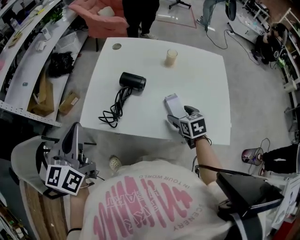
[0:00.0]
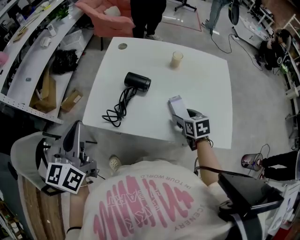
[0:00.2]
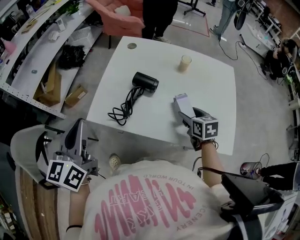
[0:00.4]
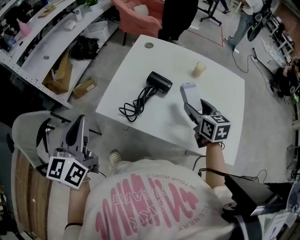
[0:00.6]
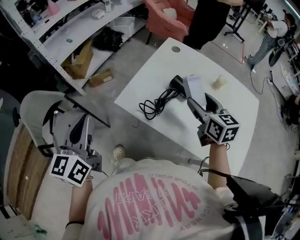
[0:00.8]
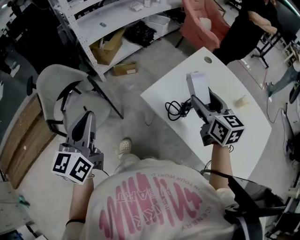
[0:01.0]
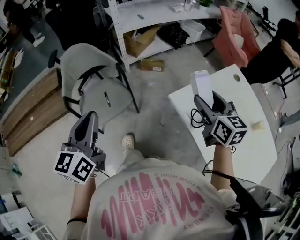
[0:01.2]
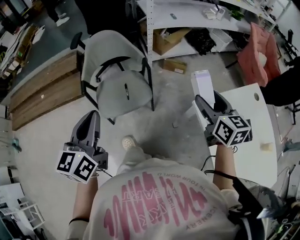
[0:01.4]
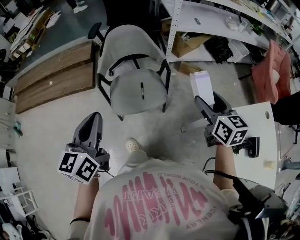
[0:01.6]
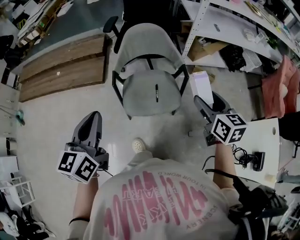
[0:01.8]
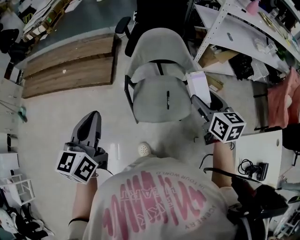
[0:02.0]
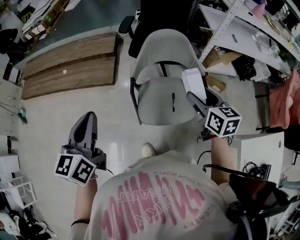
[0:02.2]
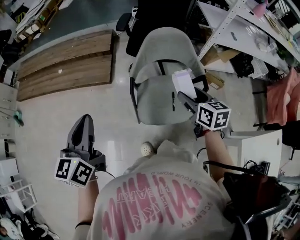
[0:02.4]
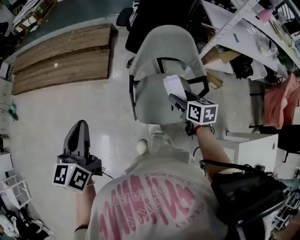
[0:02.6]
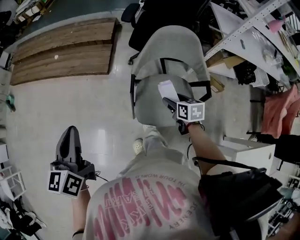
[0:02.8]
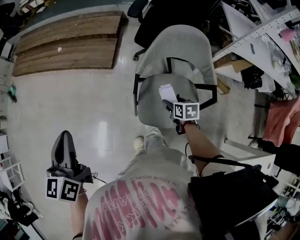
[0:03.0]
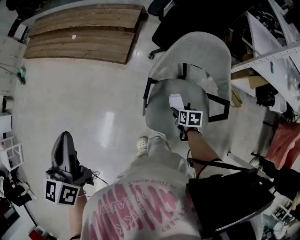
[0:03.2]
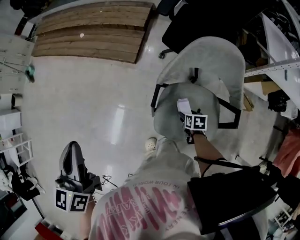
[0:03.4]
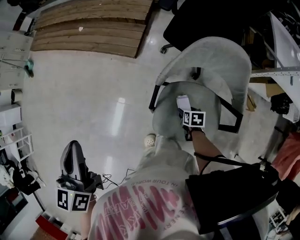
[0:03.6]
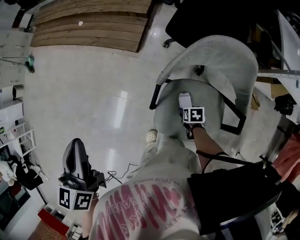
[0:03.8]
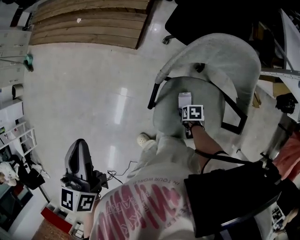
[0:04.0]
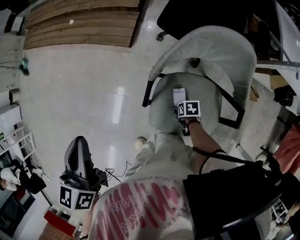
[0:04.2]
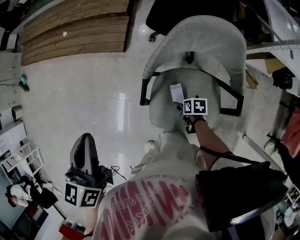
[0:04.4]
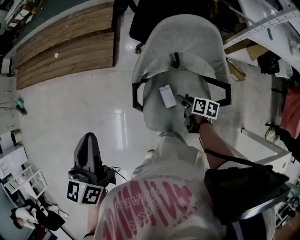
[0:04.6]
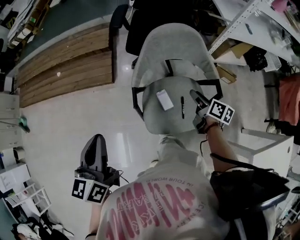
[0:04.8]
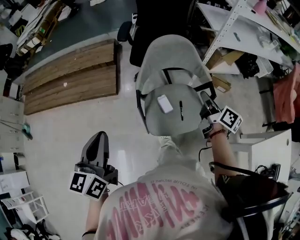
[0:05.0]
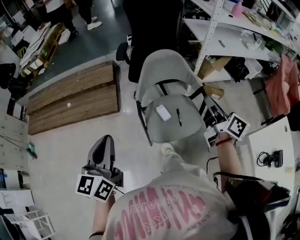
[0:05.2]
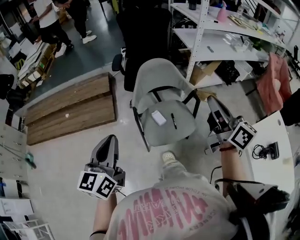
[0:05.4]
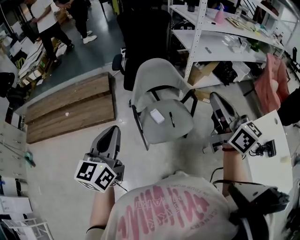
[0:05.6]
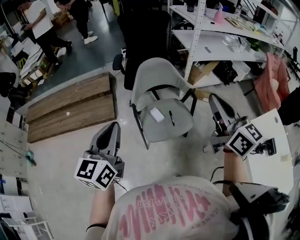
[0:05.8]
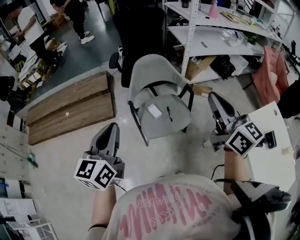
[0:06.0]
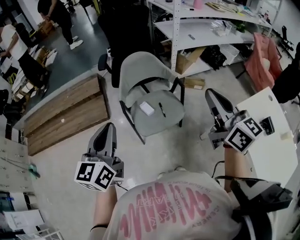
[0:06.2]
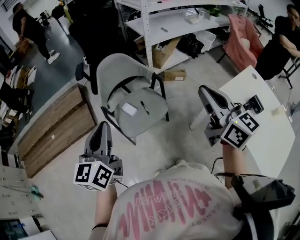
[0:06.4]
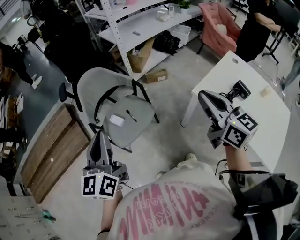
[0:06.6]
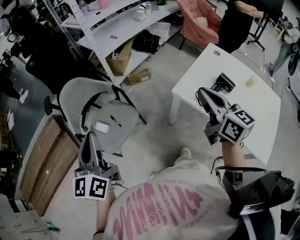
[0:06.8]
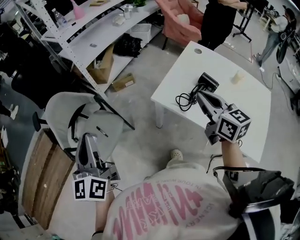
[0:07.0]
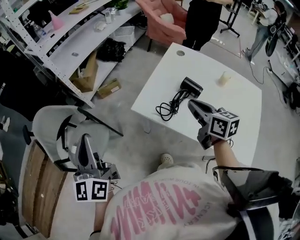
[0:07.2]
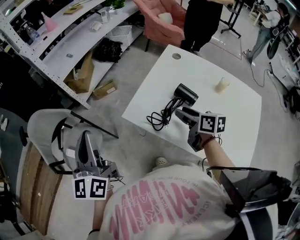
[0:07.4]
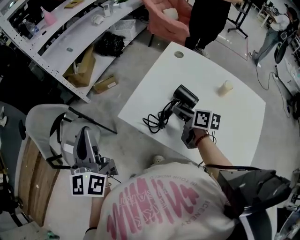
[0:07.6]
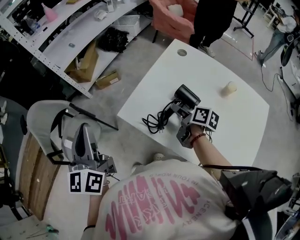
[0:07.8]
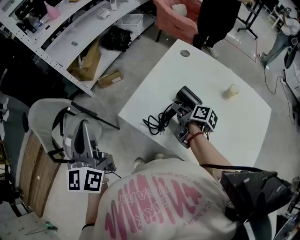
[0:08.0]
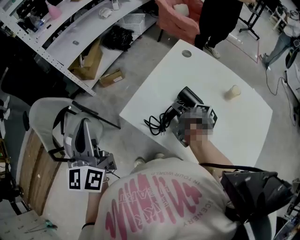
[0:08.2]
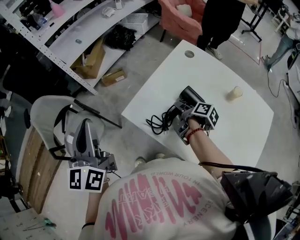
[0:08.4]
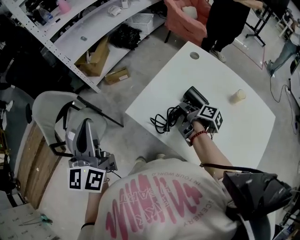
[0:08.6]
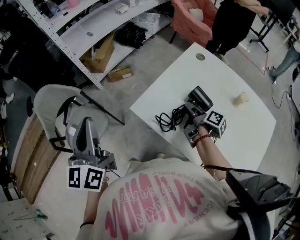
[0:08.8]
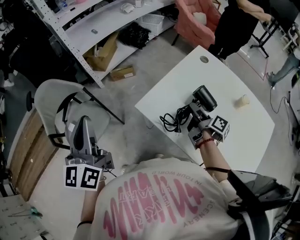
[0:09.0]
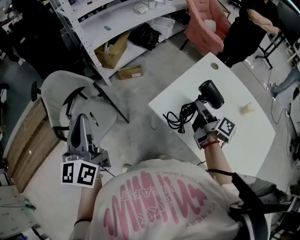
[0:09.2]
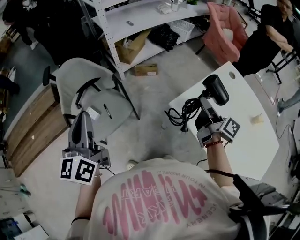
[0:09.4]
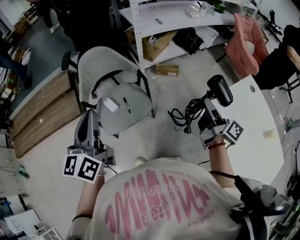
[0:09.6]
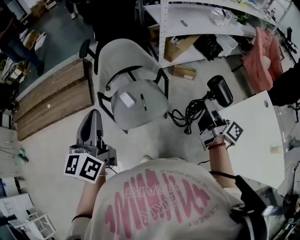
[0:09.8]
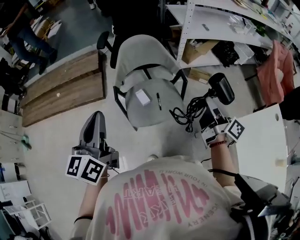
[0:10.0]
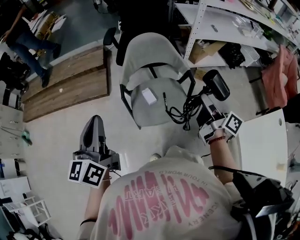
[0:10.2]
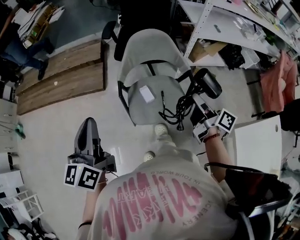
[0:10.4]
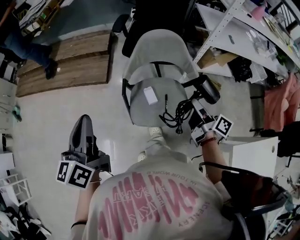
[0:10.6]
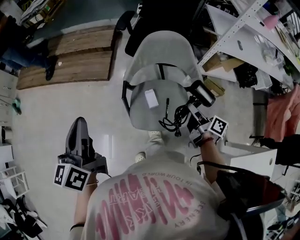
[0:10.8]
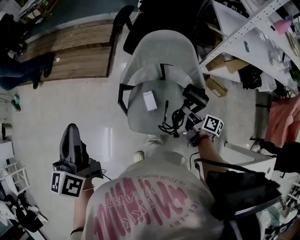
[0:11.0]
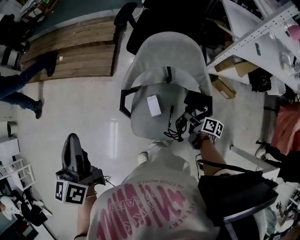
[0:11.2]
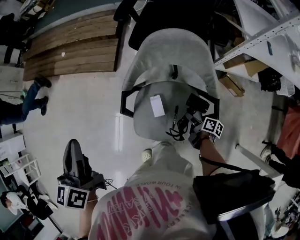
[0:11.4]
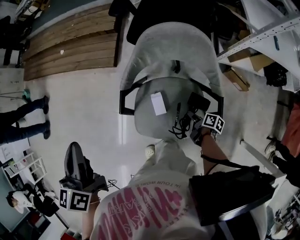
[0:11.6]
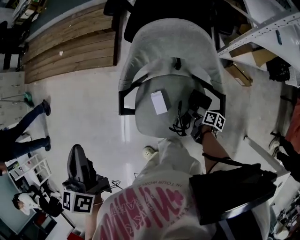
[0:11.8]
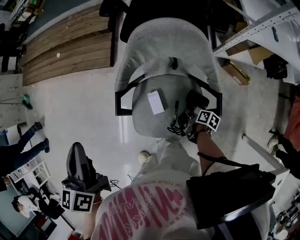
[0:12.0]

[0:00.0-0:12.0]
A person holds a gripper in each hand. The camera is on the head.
0.0 to 1.6 s: The right gripper ends up approximately 60 cm from where it was, and swivels about 70 degrees; the left gripper moves roughly 50 cm, and changes its angle by approximately 70 degrees.
1.6 to 3.0 s: The left gripper moves some 30 cm, and swivels roughly 30 degrees; the right gripper moves approximately 50 cm, and angles its fingers downward, by some 30 degrees.
3.0 to 4.4 s: The left gripper moves some 15 cm. Meanwhile the right gripper moves downward, some 15 cm, and swivels roughly 30 degrees.
4.4 to 6.0 s: The right gripper is displaced upward by some 60 cm, tips its fingers upward by about 70 degrees, and closes up; the left gripper moves some 20 cm, and rotates some 40 degrees.
6.0 to 7.6 s: The two grippers travel together, about 50 cm. The right gripper tips its fingers downward by about 30 degrees, and opens its fingers, while the left gripper swivels roughly 20 degrees.
7.6 to 9.0 s: The left gripper travels to the left by roughly 5 cm; the right gripper swivels about 30 degrees.
9.0 to 10.4 s: The two grippers travel together, approximately 50 cm. The right gripper swivels some 50 degrees. The left gripper changes its angle by approximately 40 degrees.
10.4 to 12.0 s: The right gripper travels downward by approximately 40 cm, and angles its fingers downward, by some 50 degrees. Meanwhile the left gripper moves some 15 cm, and changes its angle by about 30 degrees.

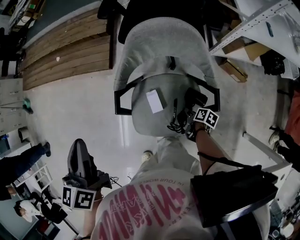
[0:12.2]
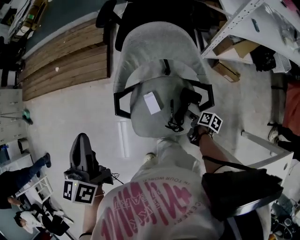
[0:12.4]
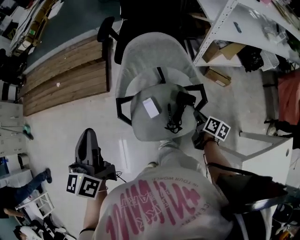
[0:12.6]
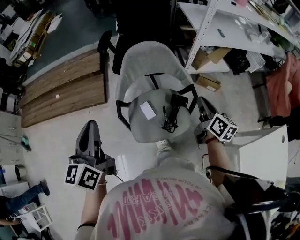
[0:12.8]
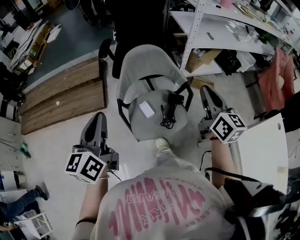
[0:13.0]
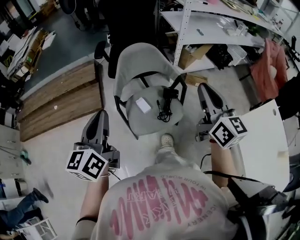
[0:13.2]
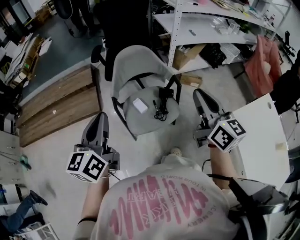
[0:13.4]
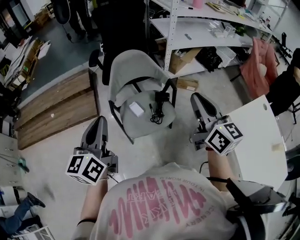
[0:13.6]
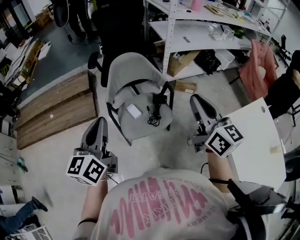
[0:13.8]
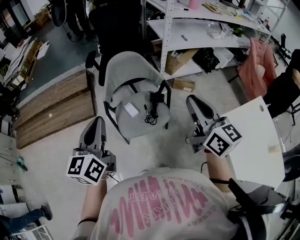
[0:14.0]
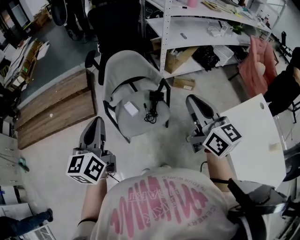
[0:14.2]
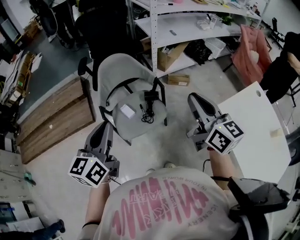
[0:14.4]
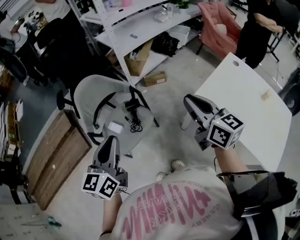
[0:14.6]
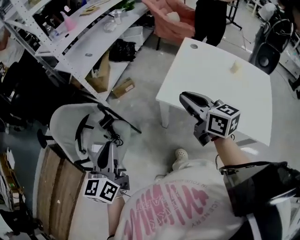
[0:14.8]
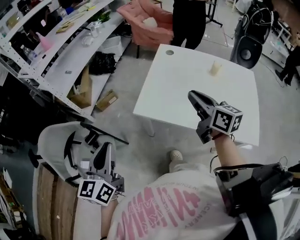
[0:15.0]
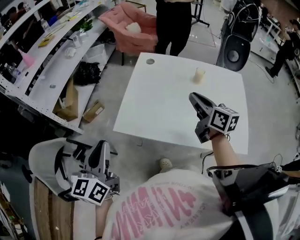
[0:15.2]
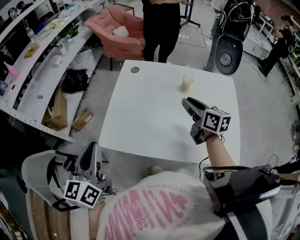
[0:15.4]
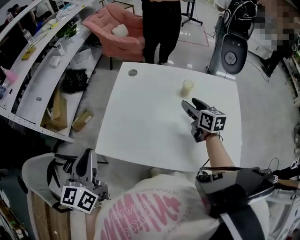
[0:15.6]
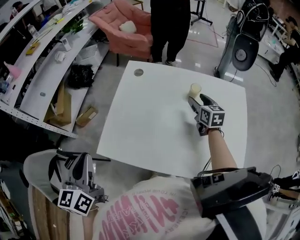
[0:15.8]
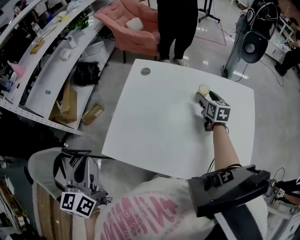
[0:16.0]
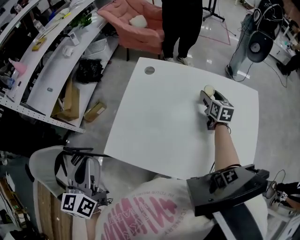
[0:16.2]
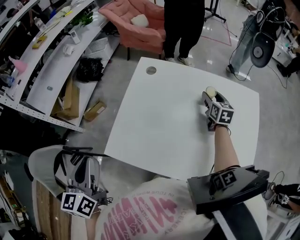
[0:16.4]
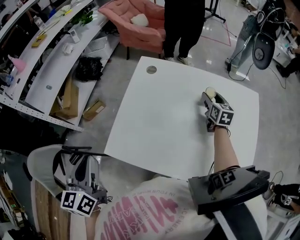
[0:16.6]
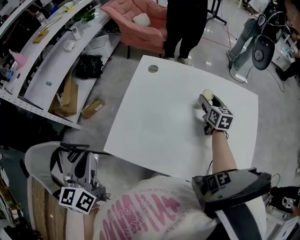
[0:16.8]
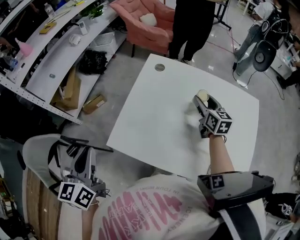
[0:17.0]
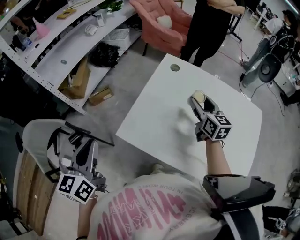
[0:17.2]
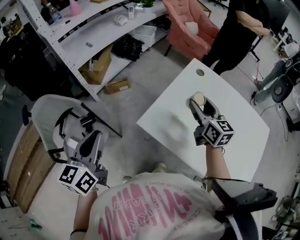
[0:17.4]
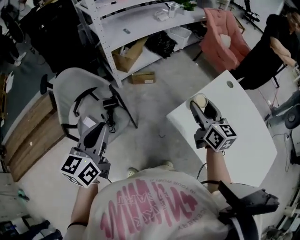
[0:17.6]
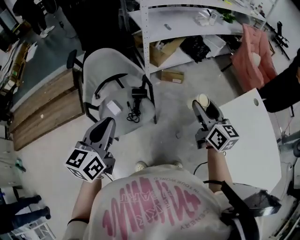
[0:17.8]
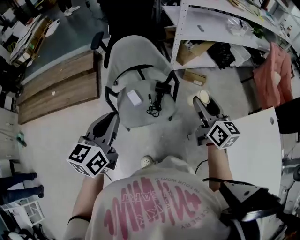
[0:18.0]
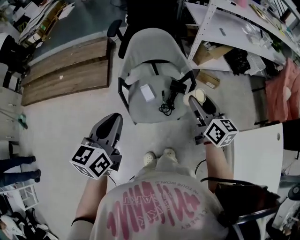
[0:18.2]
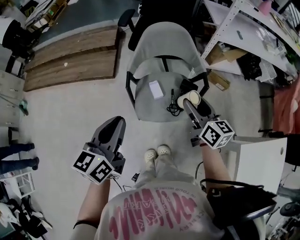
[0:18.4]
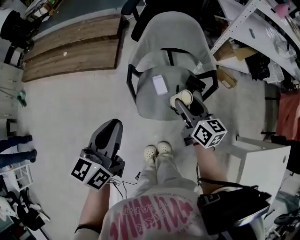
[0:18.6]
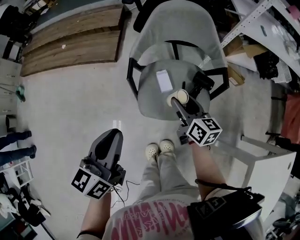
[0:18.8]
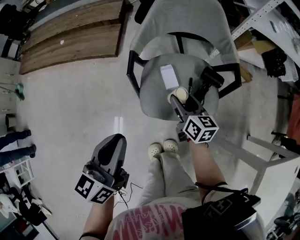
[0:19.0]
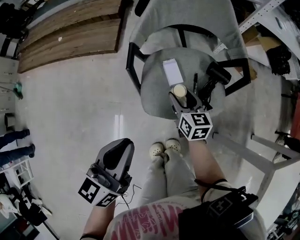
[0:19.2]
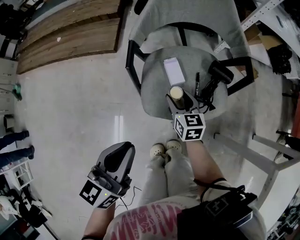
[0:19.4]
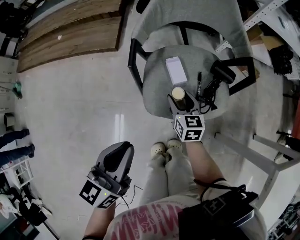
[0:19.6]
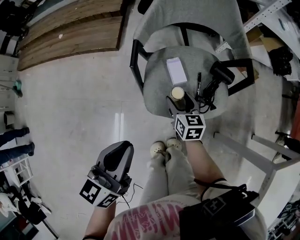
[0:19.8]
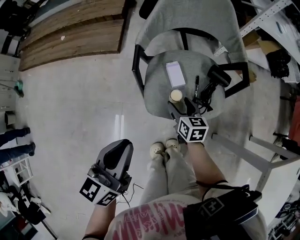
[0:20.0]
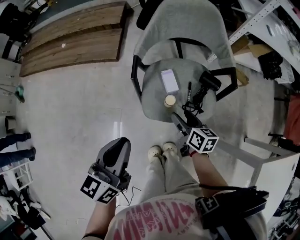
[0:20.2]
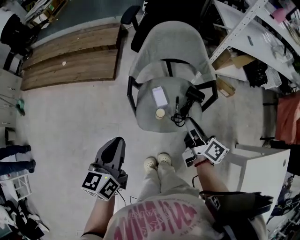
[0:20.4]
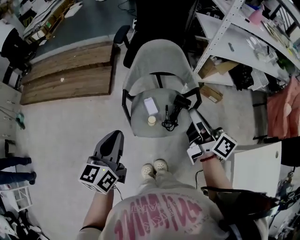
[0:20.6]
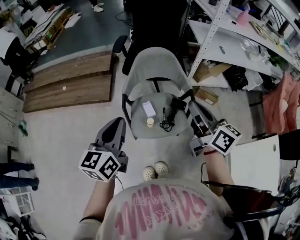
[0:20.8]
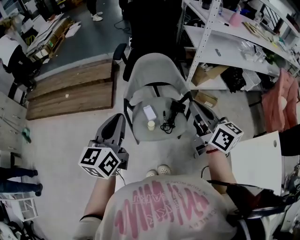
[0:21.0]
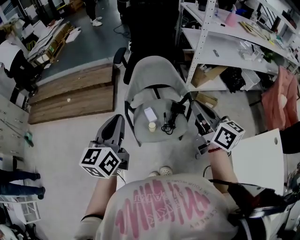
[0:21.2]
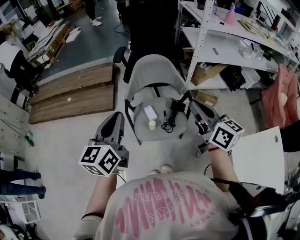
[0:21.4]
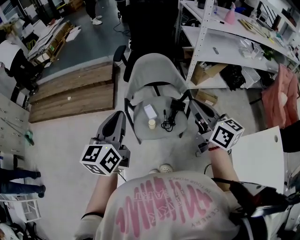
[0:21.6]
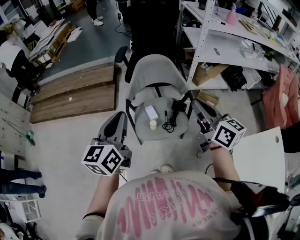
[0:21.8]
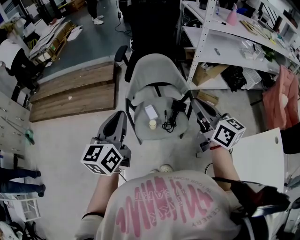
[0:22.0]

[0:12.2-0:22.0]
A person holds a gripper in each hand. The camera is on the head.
12.2 to 13.6 s: The left gripper changes place by approximately 20 cm, and rotates roughly 40 degrees, while the right gripper is displaced upward by roughly 50 cm, tilts its fingers approximately 60 degrees upward, and closes its fingers.
13.6 to 15.0 s: The left gripper ends up approximately 35 cm from where it was, and swivels about 50 degrees; the right gripper changes place by about 40 cm, and changes its angle by about 50 degrees.
15.0 to 16.4 s: The left gripper goes about 20 cm forward and to the right, while the right gripper is displaced to the right, forward and downward by some 40 cm, changes its angle by roughly 30 degrees, and opens up.
16.4 to 17.8 s: The left gripper changes place by approximately 35 cm, and swivels about 30 degrees. The right gripper ends up some 60 cm from where it was, and rotates roughly 60 degrees.
17.8 to 19.2 s: The right gripper moves about 50 cm, and changes its angle by roughly 40 degrees. Meanwhile the left gripper shifts approximately 20 cm downward, and swivels approximately 20 degrees.
19.2 to 20.6 s: The right gripper is displaced upward by about 35 cm, changes its angle by about 50 degrees, and closes its fingers, while the left gripper travels upward by roughly 15 cm.
20.6 to 22.0 s: The two grippers go about 10 cm upward. The right gripper turns by roughly 30 degrees.

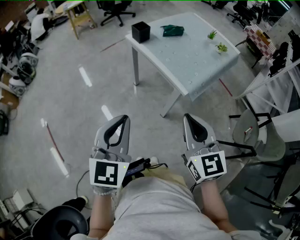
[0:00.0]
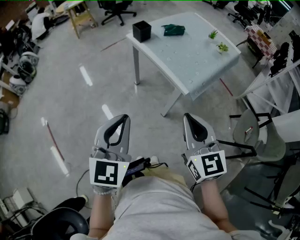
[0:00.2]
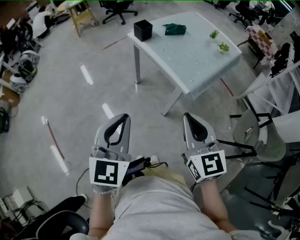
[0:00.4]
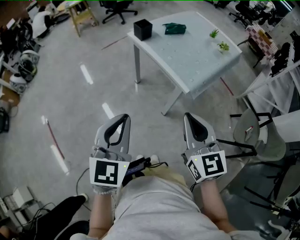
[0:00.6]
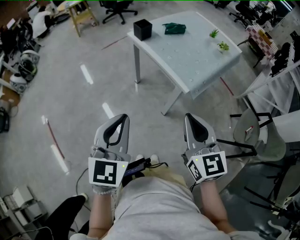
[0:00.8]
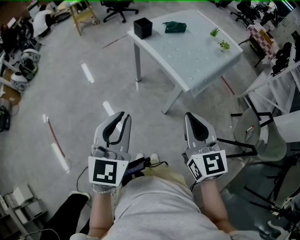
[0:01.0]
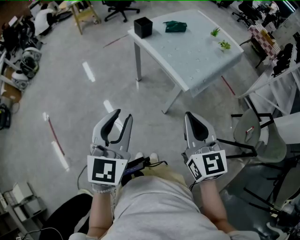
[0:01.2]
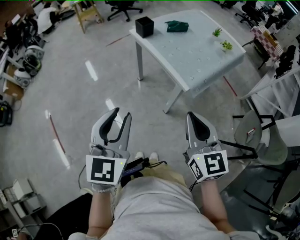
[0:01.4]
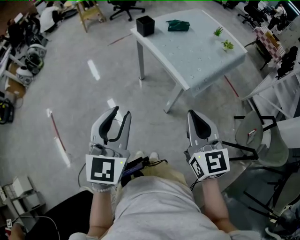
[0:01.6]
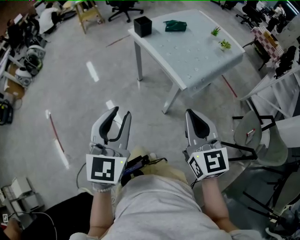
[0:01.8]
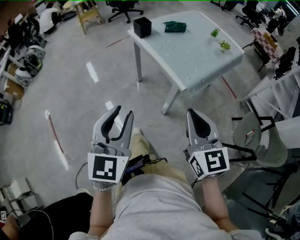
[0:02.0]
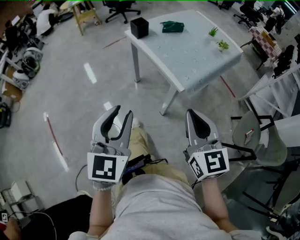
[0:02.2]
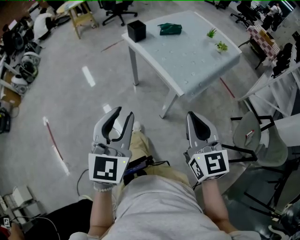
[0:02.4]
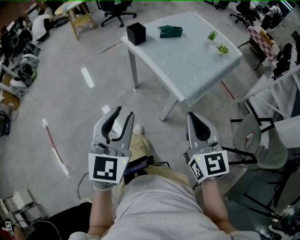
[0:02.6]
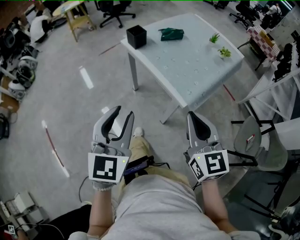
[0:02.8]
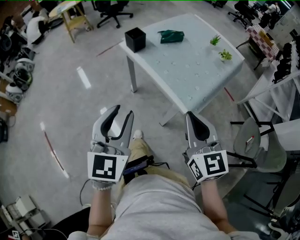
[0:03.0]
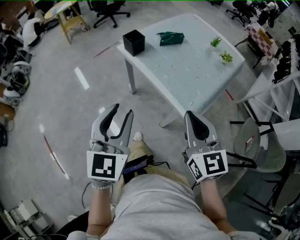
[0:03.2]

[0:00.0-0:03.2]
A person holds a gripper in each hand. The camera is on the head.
0.0 to 1.6 s: The left gripper opens its fingers.
1.6 to 3.2 s: Both grippers move forward, approximately 20 cm.
